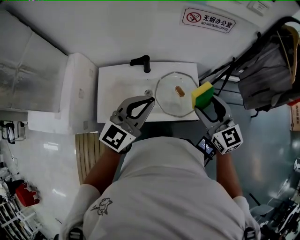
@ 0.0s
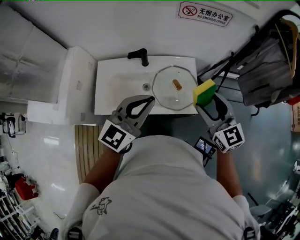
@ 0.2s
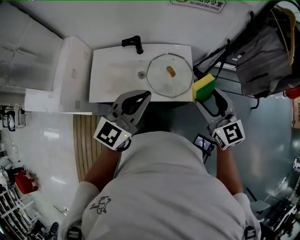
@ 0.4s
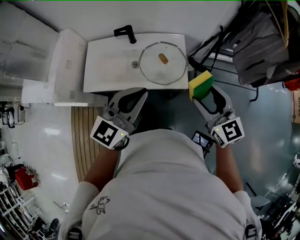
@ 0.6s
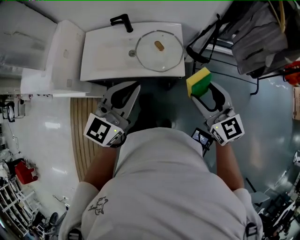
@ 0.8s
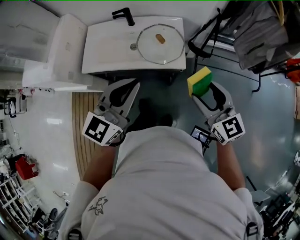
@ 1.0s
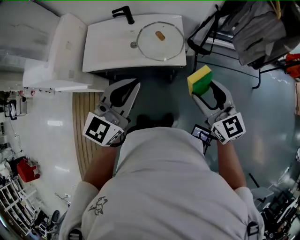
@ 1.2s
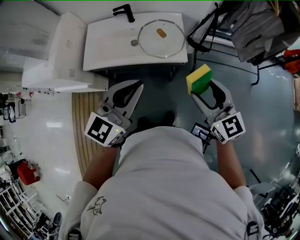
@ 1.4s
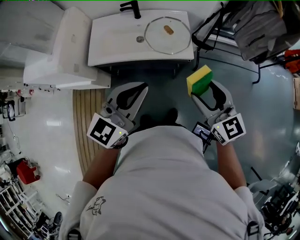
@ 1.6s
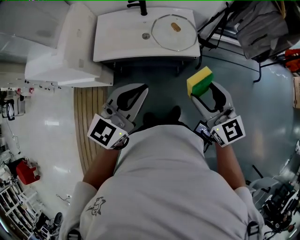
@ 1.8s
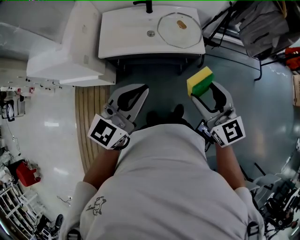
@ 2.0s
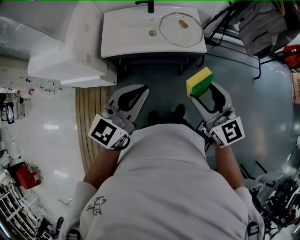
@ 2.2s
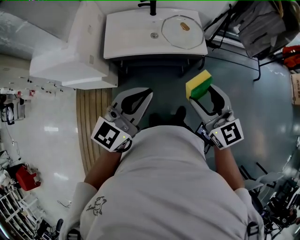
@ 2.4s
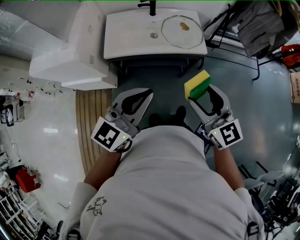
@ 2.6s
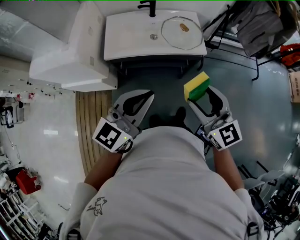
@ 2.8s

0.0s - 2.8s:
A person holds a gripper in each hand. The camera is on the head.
0.0s - 1.4s: Both grippers move backward and to the right, about 30 cm.
1.4s - 2.8s: The grippers both shift to the left and backward by about 25 cm.

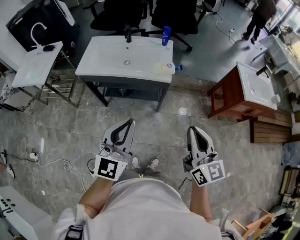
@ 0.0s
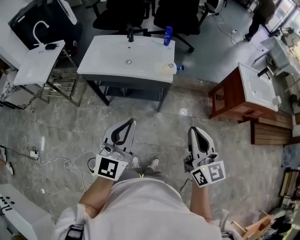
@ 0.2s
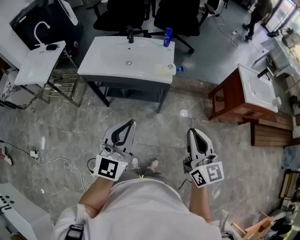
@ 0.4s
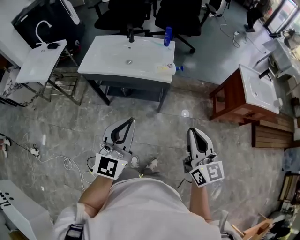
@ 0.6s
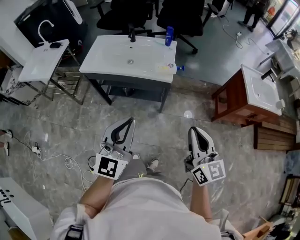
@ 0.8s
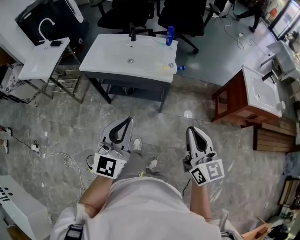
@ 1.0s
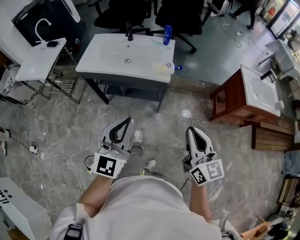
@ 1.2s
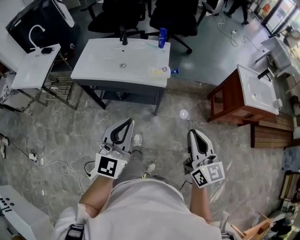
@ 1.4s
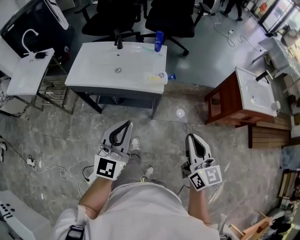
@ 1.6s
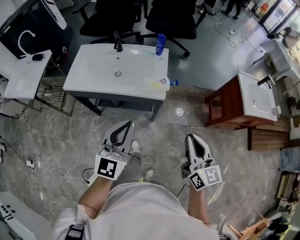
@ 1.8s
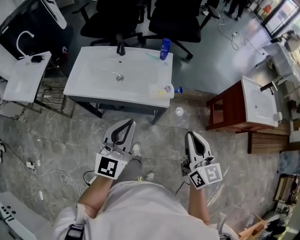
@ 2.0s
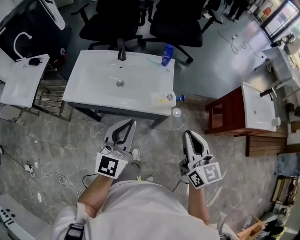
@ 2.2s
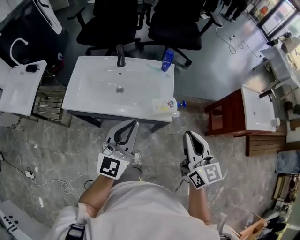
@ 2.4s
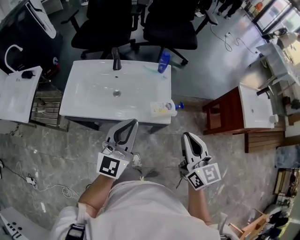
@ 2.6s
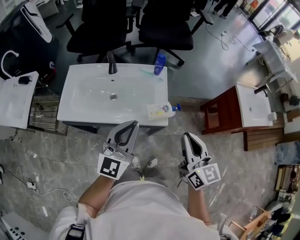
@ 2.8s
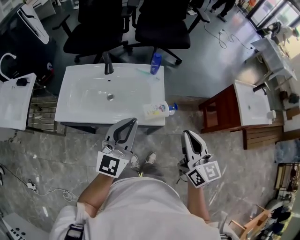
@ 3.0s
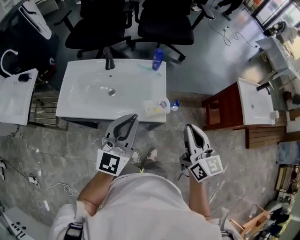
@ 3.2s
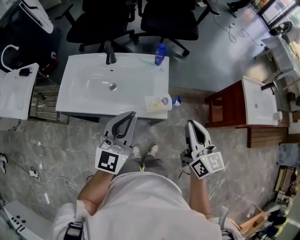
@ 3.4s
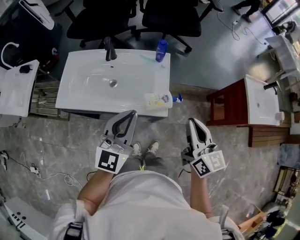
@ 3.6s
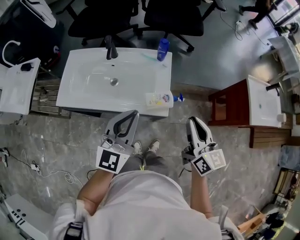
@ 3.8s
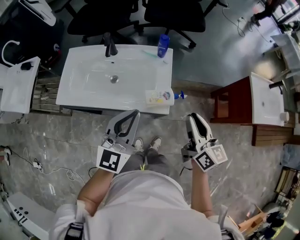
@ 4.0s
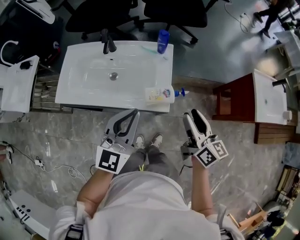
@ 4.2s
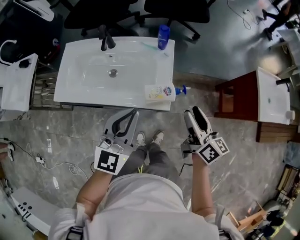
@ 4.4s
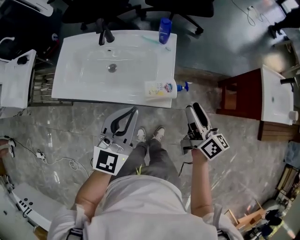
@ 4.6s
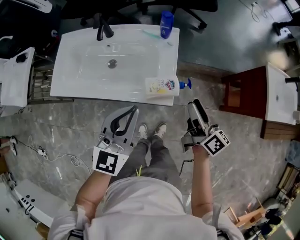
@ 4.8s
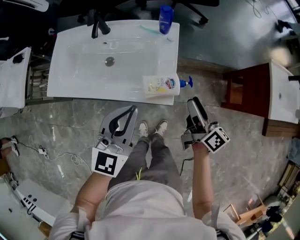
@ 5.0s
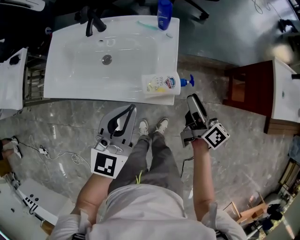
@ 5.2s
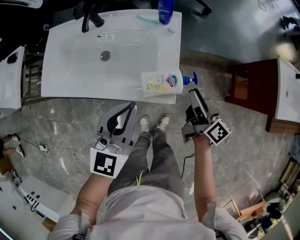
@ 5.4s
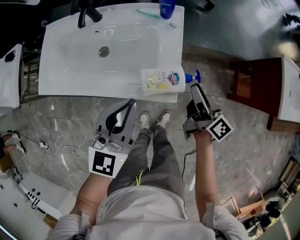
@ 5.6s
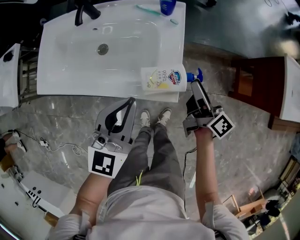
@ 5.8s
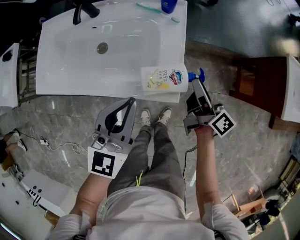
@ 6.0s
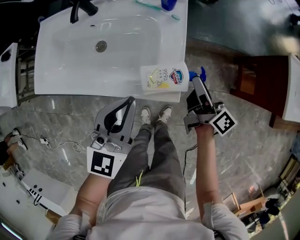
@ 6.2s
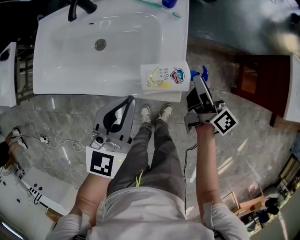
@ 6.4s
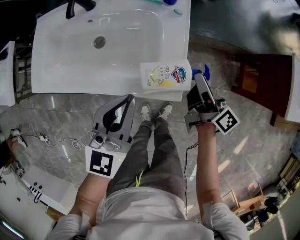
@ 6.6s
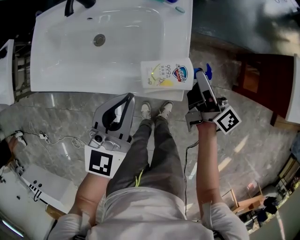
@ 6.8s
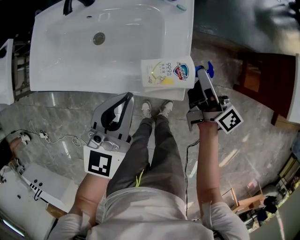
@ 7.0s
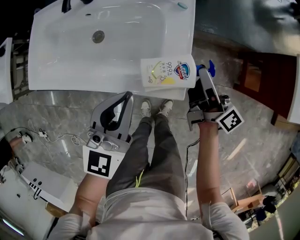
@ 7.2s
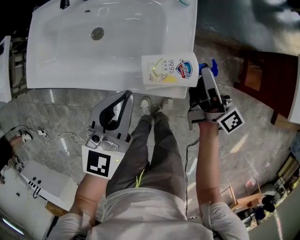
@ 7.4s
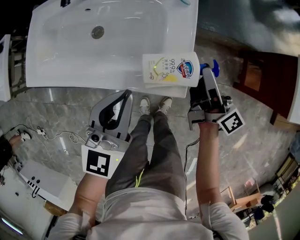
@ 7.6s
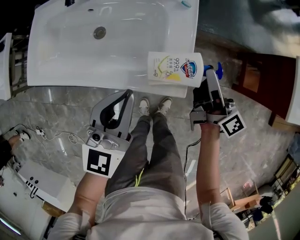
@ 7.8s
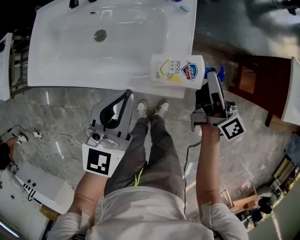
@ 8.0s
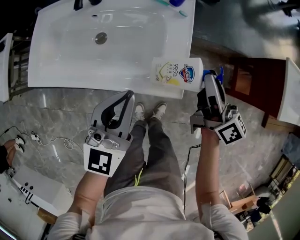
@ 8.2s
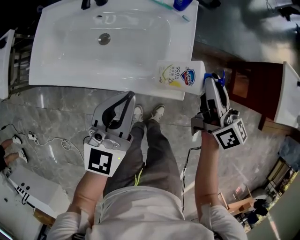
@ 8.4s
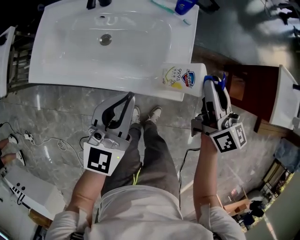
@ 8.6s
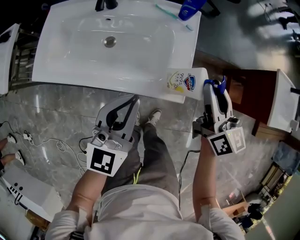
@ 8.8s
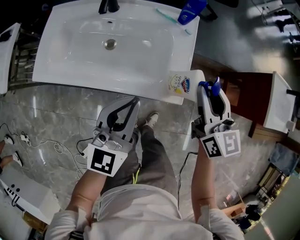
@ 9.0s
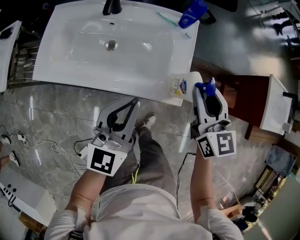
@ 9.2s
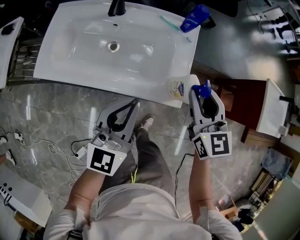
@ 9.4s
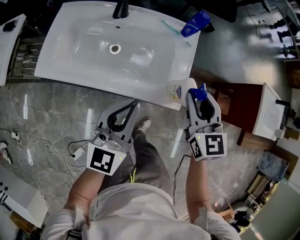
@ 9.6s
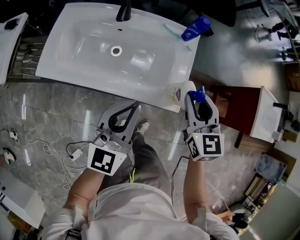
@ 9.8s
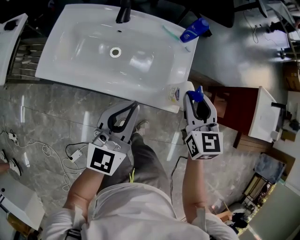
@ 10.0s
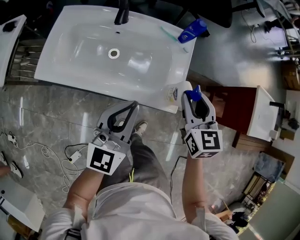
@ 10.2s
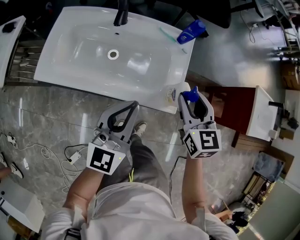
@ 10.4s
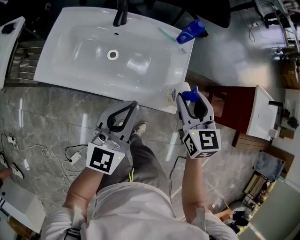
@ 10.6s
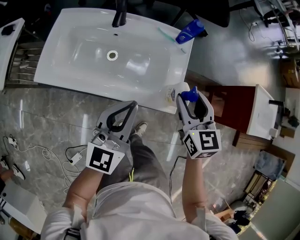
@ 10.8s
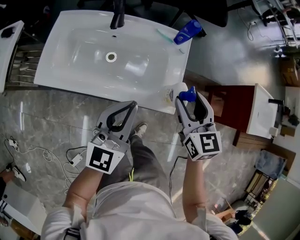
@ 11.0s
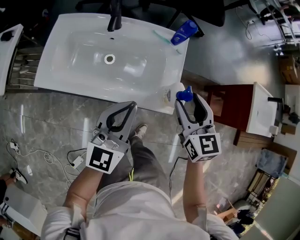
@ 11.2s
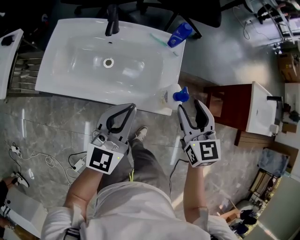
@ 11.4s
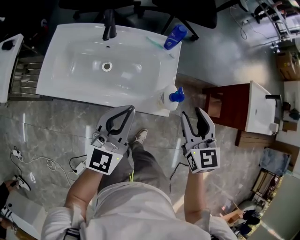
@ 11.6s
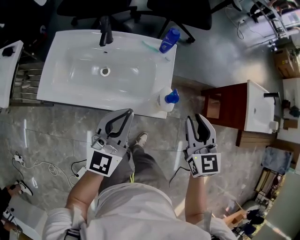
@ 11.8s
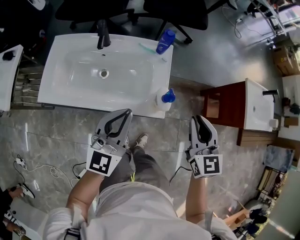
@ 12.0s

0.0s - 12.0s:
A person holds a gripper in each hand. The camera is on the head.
0.0s - 1.6s: The right gripper travels forward and to the right by roughly 10 cm; the left gripper goes about 10 cm forward.
1.6s - 3.0s: Both grippers move forward, about 25 cm.
3.0s - 4.4s: The right gripper goes about 15 cm downward, forward and to the right, turns by approximately 30 degrees, and opens its fingers. Meanwhile the left gripper goes some 5 cm downward.
4.4s - 6.0s: The grippers both shift downward and forward by about 20 cm. The right gripper turns by about 30 degrees.
6.0s - 7.6s: The right gripper closes.
7.6s - 9.0s: The left gripper goes some 5 cm upward; the right gripper heads upward and to the left, covering about 15 cm, and rolls counterclockwise, seen from behind, by about 60 degrees.
9.0s - 10.4s: The right gripper heads to the left, covering approximately 5 cm, and turns by about 20 degrees; the left gripper shifts by about 5 cm.
10.4s - 12.0s: The right gripper goes roughly 15 cm to the right, upward and backward, and closes. The left gripper changes place by about 5 cm.

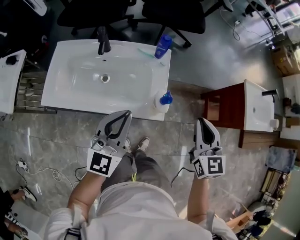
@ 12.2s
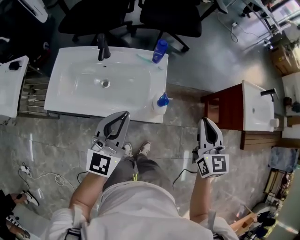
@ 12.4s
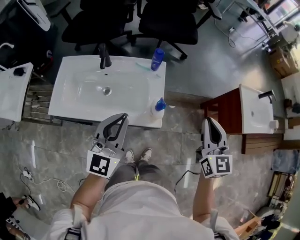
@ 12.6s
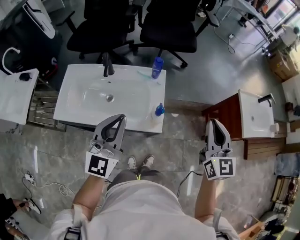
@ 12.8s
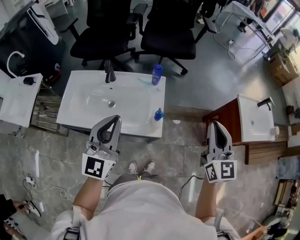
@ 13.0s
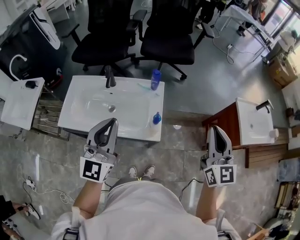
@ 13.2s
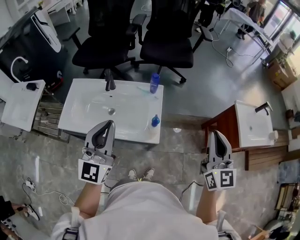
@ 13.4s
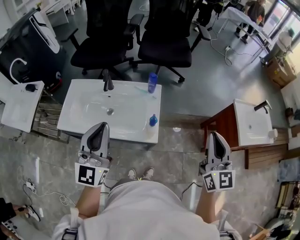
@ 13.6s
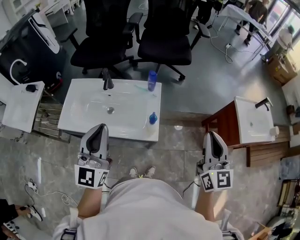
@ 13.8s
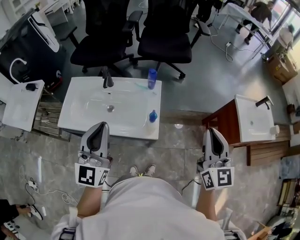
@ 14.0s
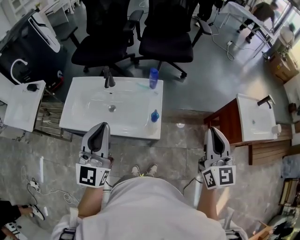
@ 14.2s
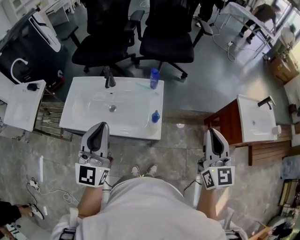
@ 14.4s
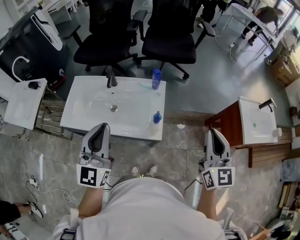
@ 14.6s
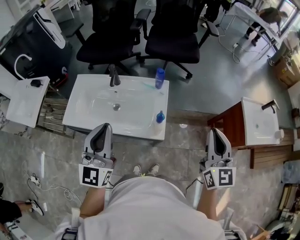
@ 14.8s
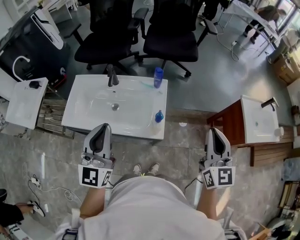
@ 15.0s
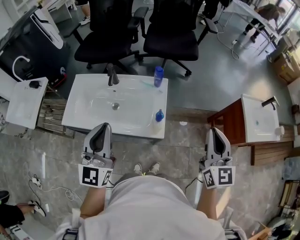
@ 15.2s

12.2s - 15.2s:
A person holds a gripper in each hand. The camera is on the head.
12.2s - 13.8s: The left gripper travels upward by some 15 cm. The right gripper shifts some 20 cm upward and to the right.
13.8s - 15.2s: The grippers stay close to where they were, moving slightly.

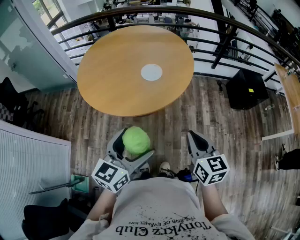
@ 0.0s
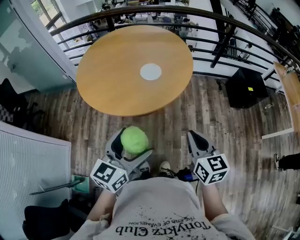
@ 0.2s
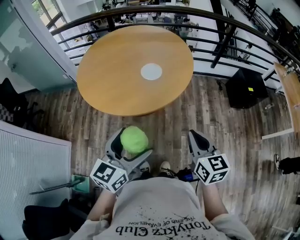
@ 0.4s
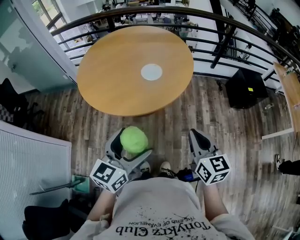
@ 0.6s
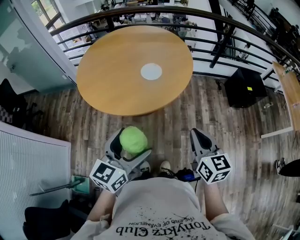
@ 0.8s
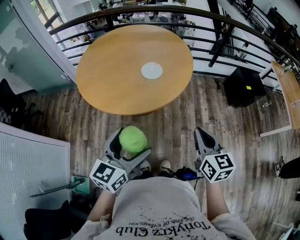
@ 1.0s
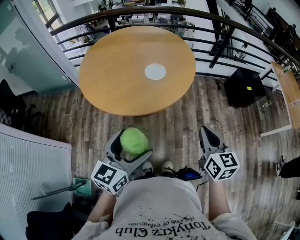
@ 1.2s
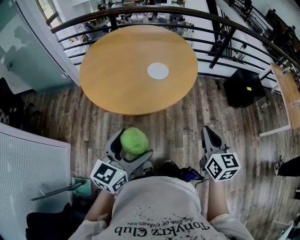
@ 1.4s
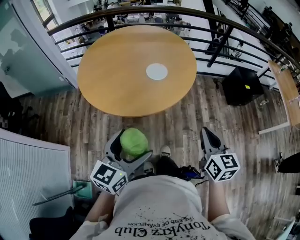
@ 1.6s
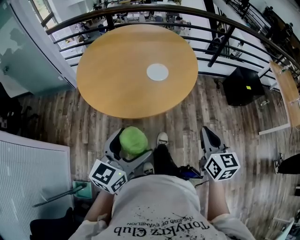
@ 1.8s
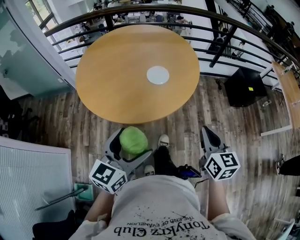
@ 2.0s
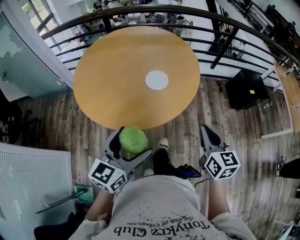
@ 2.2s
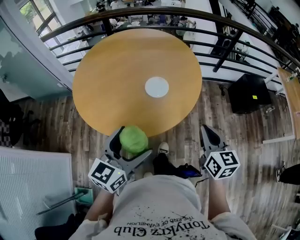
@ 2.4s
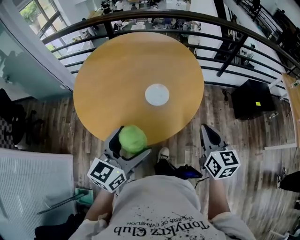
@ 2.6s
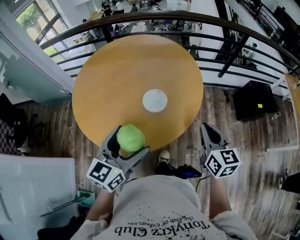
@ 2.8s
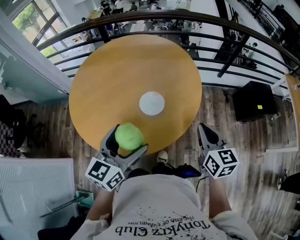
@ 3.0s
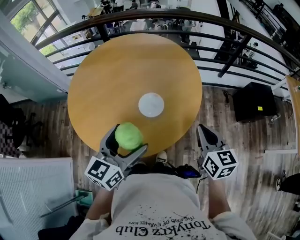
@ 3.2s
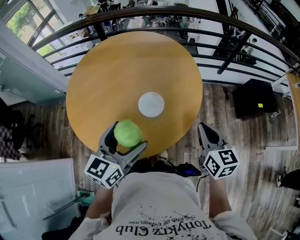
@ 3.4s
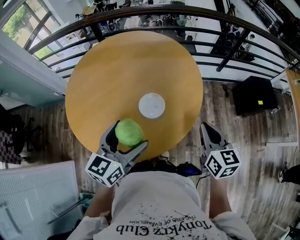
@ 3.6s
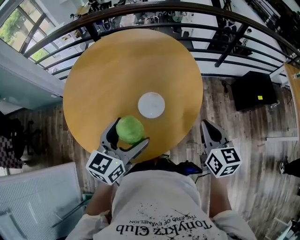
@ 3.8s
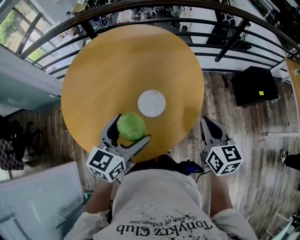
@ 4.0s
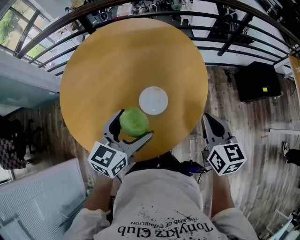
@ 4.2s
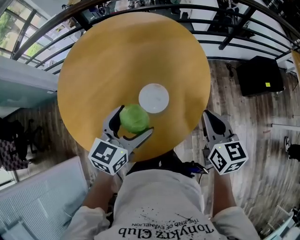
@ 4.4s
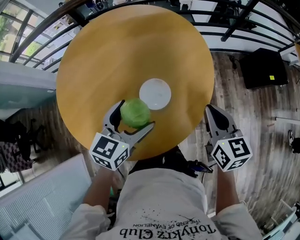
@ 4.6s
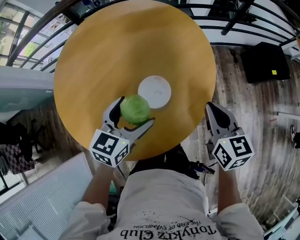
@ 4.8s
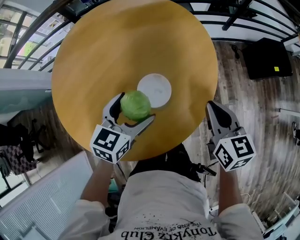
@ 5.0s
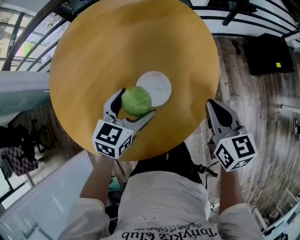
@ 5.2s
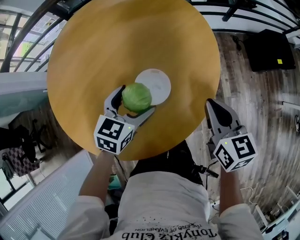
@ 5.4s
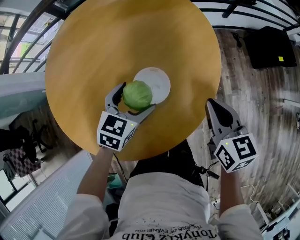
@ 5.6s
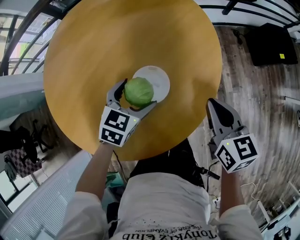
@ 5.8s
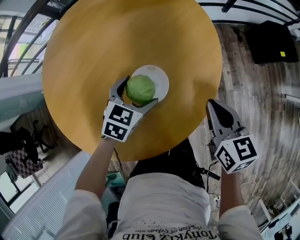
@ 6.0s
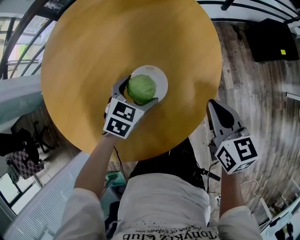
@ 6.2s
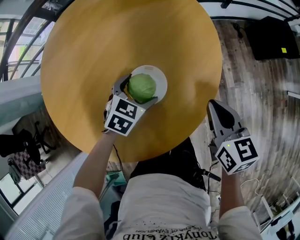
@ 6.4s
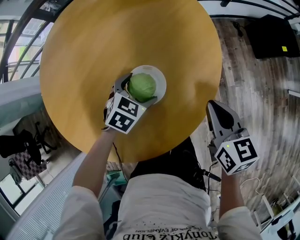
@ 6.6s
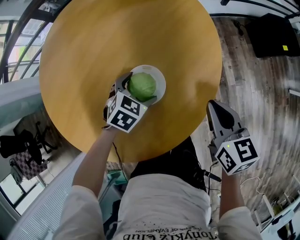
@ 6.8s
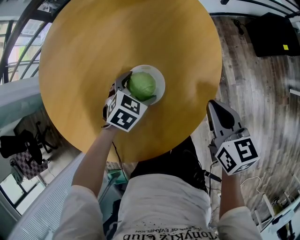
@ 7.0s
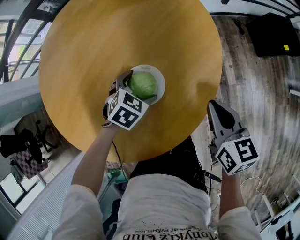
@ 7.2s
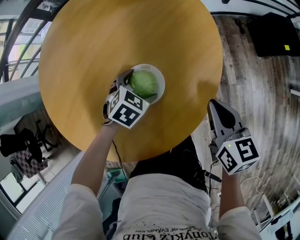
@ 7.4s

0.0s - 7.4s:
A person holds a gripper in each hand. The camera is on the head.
0.0s - 1.4s: The left gripper travels to the left by roughly 10 cm.
1.4s - 3.0s: Both grippers travel together forward, approximately 30 cm.
3.0s - 4.4s: The left gripper shifts some 15 cm forward and downward, while the right gripper is displaced forward by about 5 cm.
4.4s - 6.0s: The right gripper heads downward, covering about 10 cm. The left gripper is displaced downward and forward by some 20 cm, and turns by roughly 30 degrees.
6.0s - 7.4s: The left gripper moves downward, some 5 cm.
